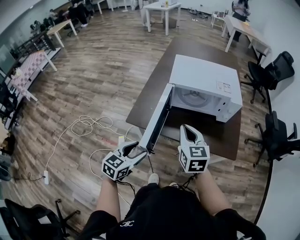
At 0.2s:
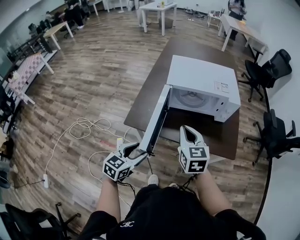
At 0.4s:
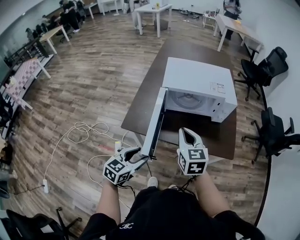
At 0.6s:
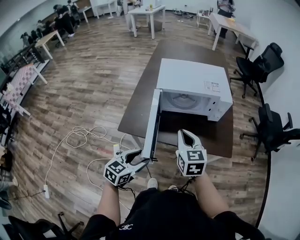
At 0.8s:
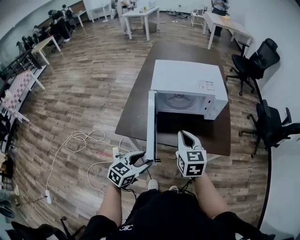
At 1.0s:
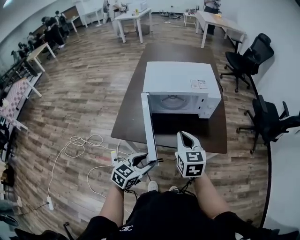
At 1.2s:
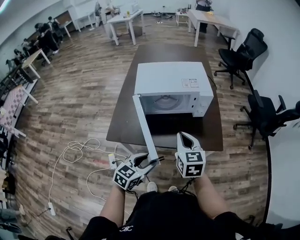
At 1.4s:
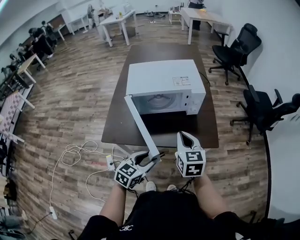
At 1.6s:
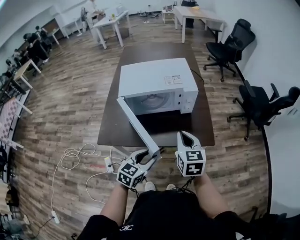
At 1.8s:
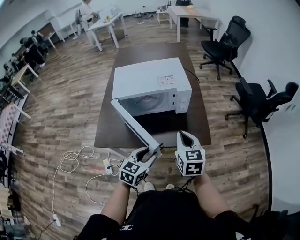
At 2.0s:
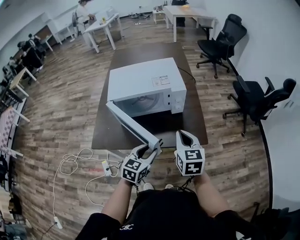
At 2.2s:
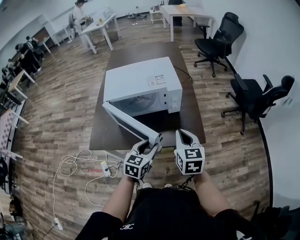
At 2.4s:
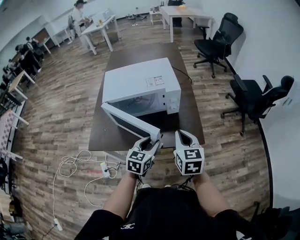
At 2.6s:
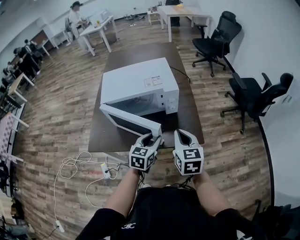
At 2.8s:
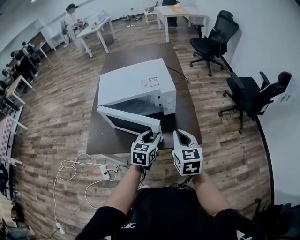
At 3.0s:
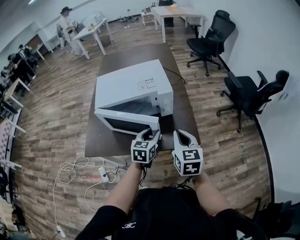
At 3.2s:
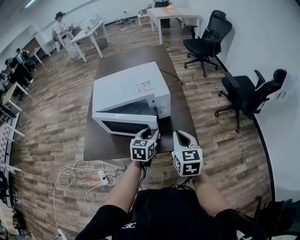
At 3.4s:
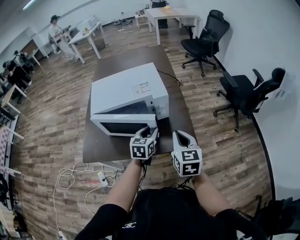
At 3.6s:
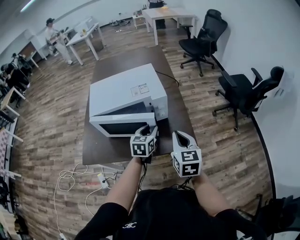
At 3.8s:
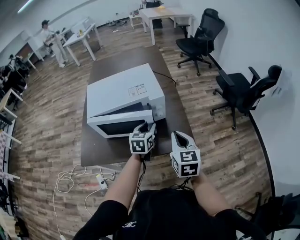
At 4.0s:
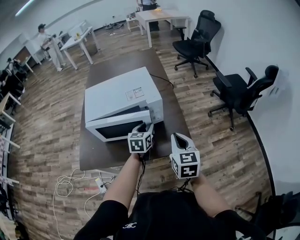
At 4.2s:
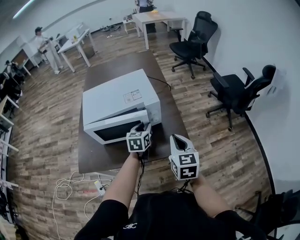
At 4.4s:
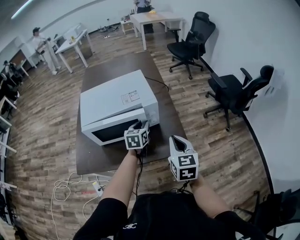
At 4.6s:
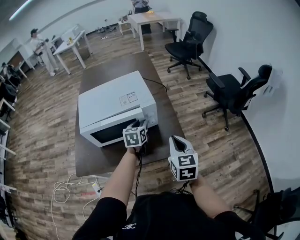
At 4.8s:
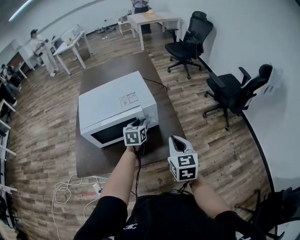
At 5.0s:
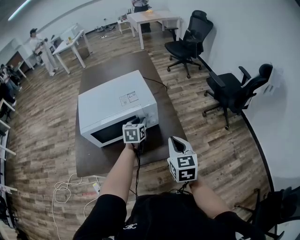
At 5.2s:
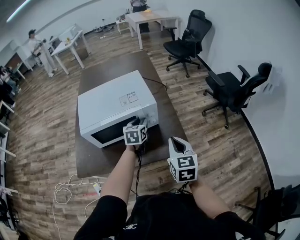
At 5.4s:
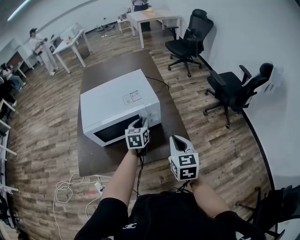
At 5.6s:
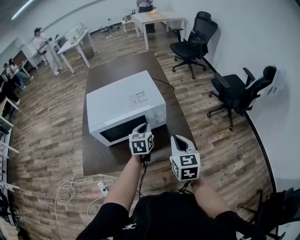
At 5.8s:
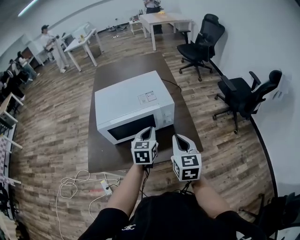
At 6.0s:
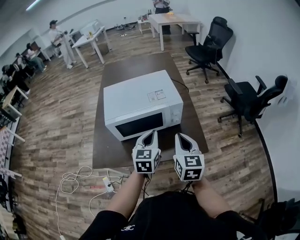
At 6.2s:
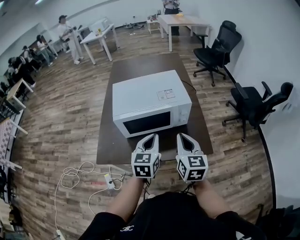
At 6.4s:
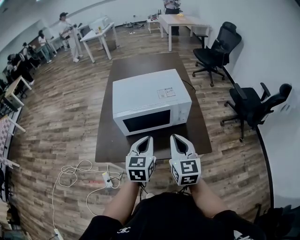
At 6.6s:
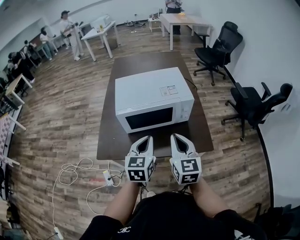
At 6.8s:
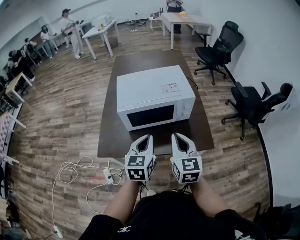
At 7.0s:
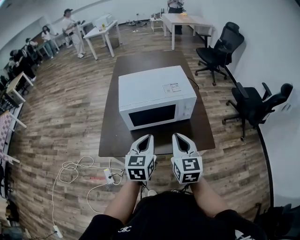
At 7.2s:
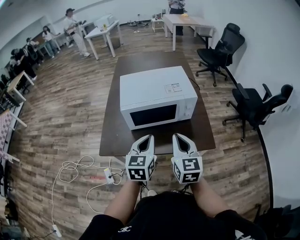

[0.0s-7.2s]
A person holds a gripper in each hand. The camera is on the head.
0.0s to 1.4s: Both grippers move to the right, some 15 cm.
1.4s to 2.8s: The right gripper moves to the right, roughly 10 cm, while the left gripper travels forward and to the right by about 20 cm.
2.8s to 4.4s: The left gripper is displaced forward by some 15 cm. The right gripper changes place by some 5 cm.
4.4s to 5.8s: The left gripper heads upward and backward, covering about 10 cm, and closes up. Meanwhile the right gripper travels to the left by roughly 5 cm.
5.8s to 7.2s: The left gripper is displaced backward and to the left by about 20 cm. The right gripper heads to the left and backward, covering roughly 15 cm.

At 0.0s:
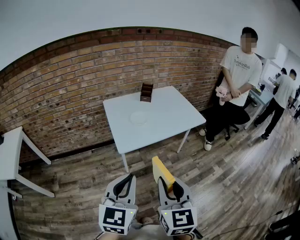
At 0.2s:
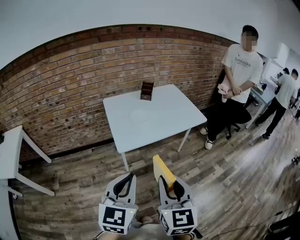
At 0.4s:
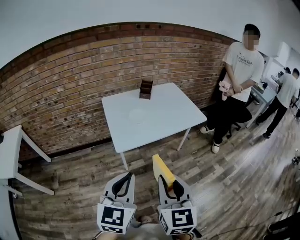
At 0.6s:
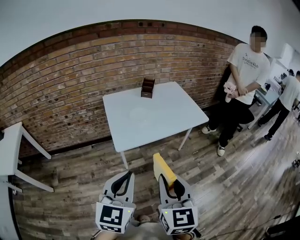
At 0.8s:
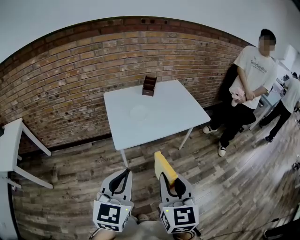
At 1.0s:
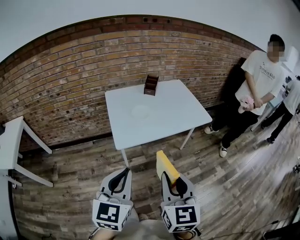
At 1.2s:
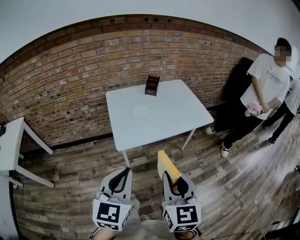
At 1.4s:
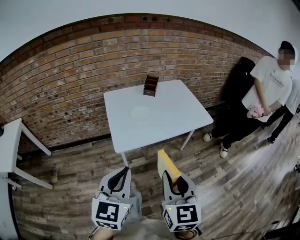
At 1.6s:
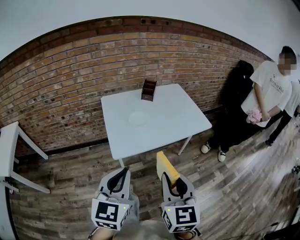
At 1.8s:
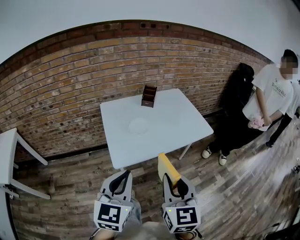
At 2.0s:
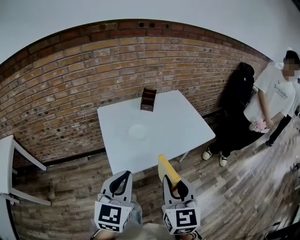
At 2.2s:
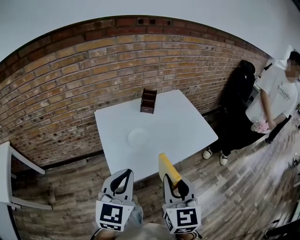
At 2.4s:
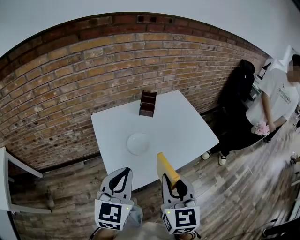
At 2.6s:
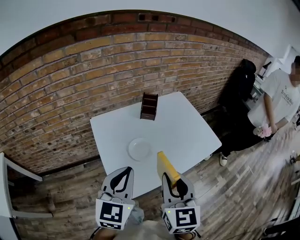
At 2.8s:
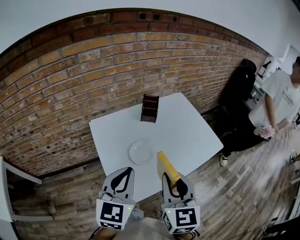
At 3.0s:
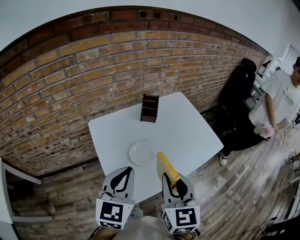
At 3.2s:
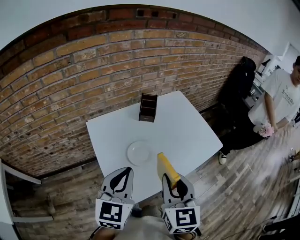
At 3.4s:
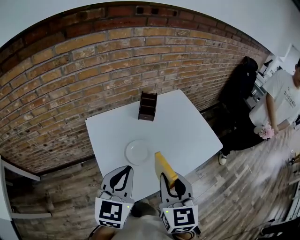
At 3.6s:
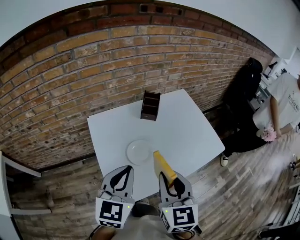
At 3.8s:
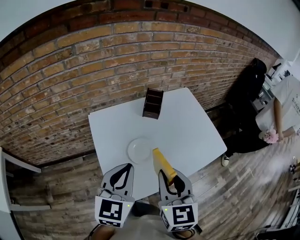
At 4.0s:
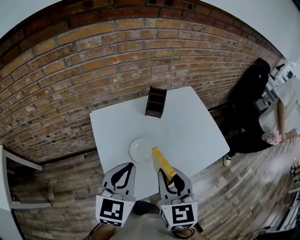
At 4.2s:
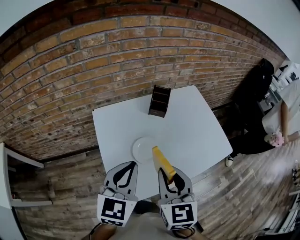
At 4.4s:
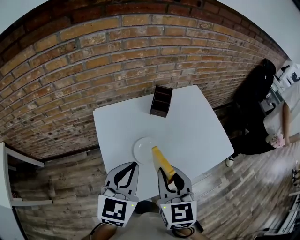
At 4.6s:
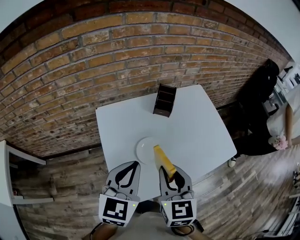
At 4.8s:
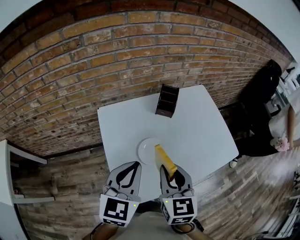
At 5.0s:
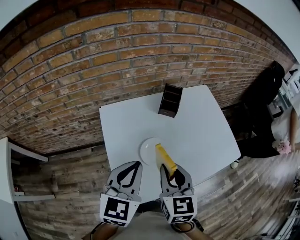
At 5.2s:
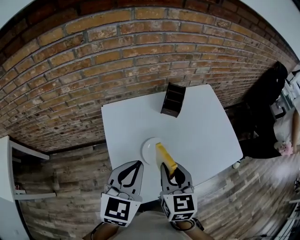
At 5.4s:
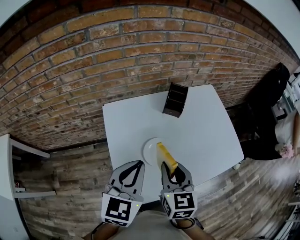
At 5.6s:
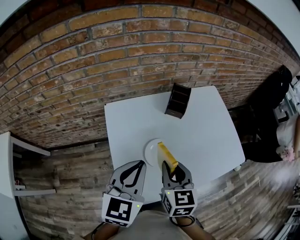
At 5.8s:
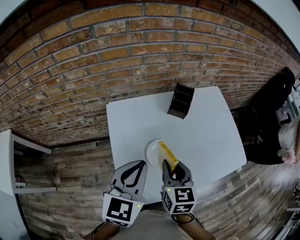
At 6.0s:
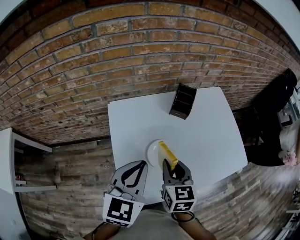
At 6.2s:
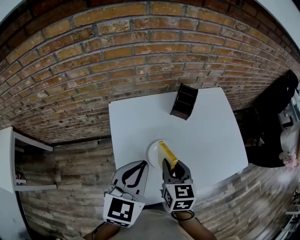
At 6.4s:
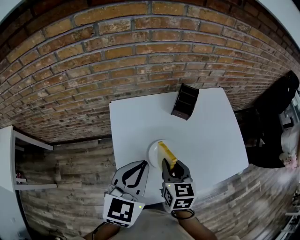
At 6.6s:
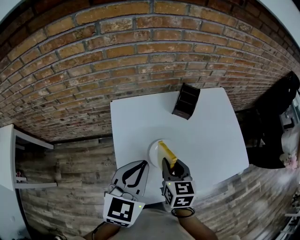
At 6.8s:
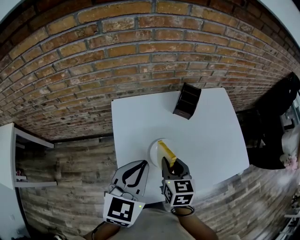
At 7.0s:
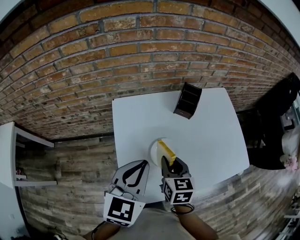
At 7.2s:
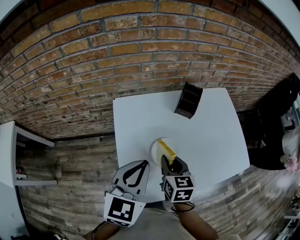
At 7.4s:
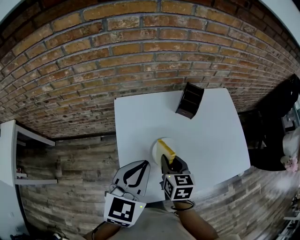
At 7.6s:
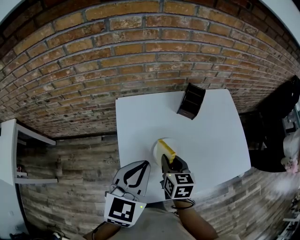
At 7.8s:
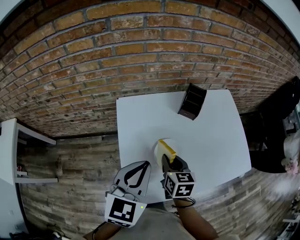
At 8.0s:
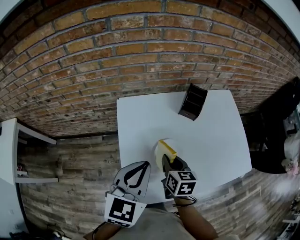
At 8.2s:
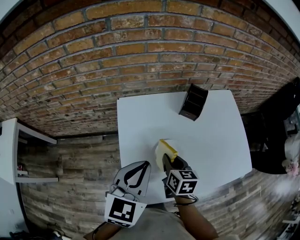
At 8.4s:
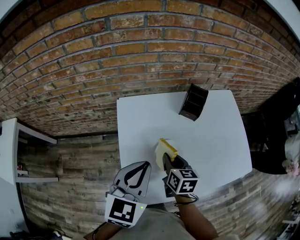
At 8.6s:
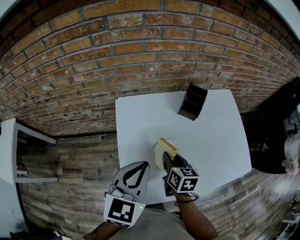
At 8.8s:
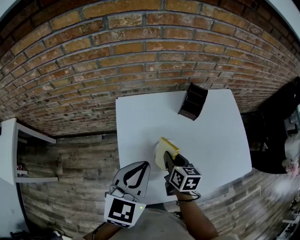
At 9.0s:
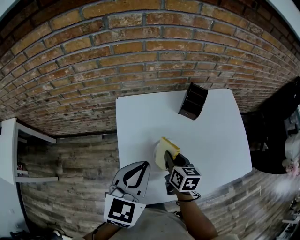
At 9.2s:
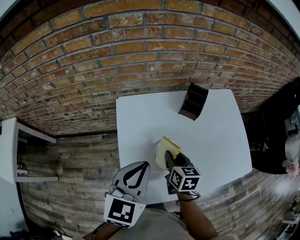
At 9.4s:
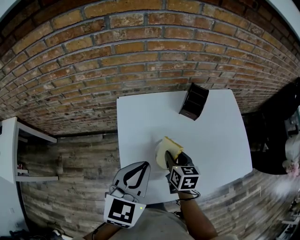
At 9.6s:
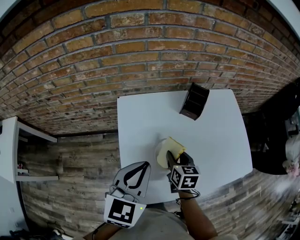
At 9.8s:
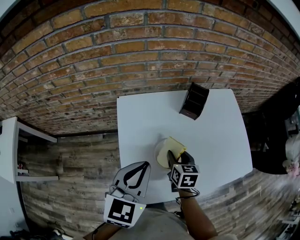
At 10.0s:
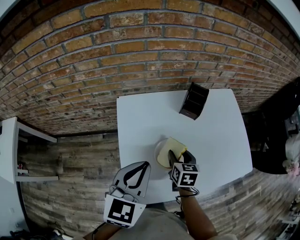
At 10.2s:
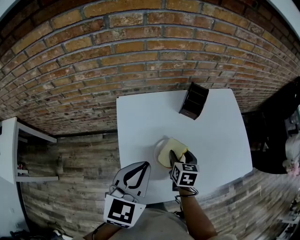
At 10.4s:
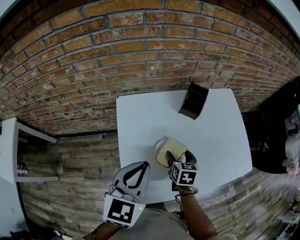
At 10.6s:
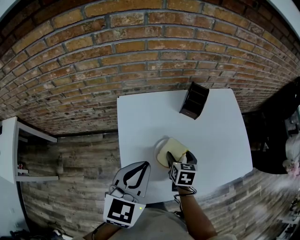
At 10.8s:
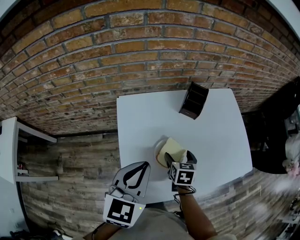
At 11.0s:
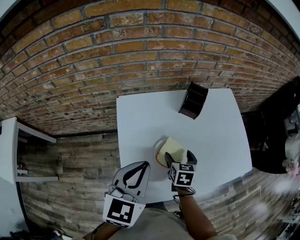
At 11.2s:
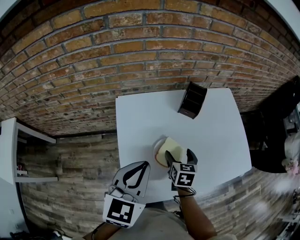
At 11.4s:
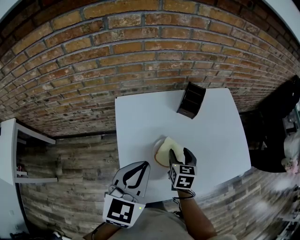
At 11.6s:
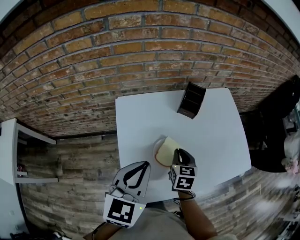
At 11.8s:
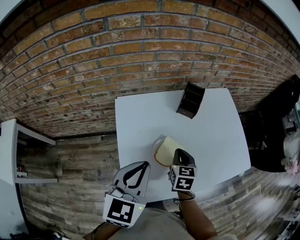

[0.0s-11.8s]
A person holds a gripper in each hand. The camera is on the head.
0.0s to 1.4s: The two grippers go about 10 cm forward.
1.4s to 3.0s: Both grippers travel together forward, approximately 35 cm.
3.0s to 4.4s: The right gripper travels forward by about 5 cm.
4.4s to 6.0s: The right gripper heads downward and forward, covering approximately 15 cm. Meanwhile the left gripper changes place by roughly 5 cm.
6.0s to 7.4s: The right gripper moves some 5 cm.
7.4s to 8.8s: The grippers make only small movements.
8.8s to 10.4s: The right gripper changes place by roughly 5 cm, and opens.
10.4s to 11.8s: The right gripper closes.

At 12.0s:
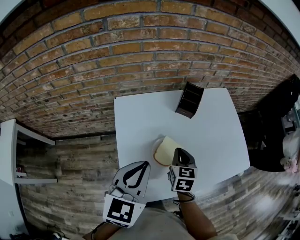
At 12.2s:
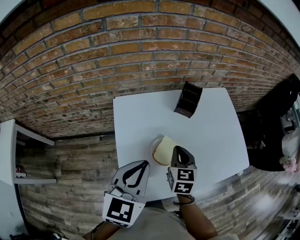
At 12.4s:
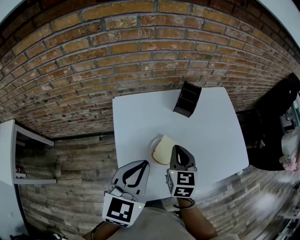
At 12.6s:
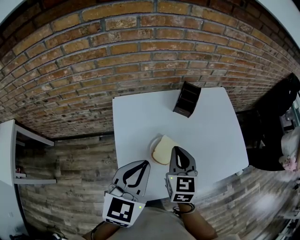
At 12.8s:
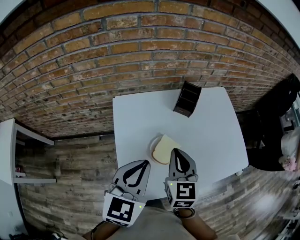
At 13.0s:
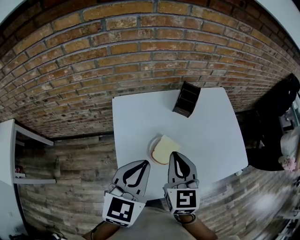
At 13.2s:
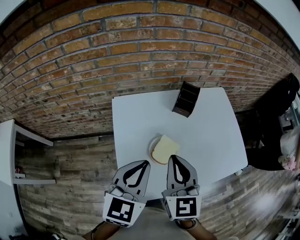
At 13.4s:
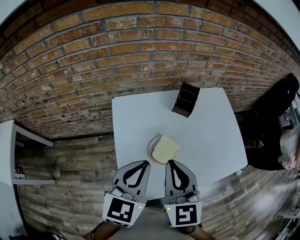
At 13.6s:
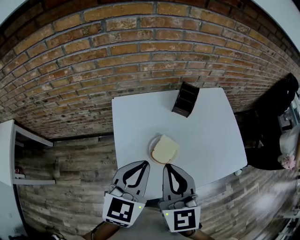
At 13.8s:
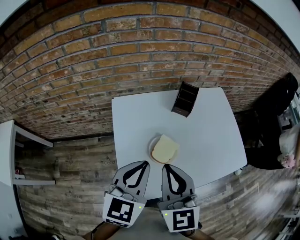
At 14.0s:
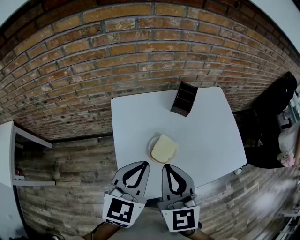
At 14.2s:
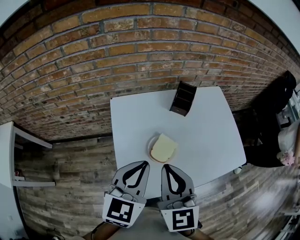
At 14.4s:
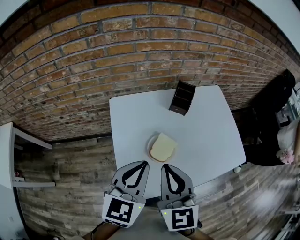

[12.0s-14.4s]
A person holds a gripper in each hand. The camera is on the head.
12.0s to 13.2s: The right gripper is displaced upward and backward by about 15 cm, and changes its angle by approximately 30 degrees.
13.2s to 14.4s: The right gripper ends up some 5 cm from where it was.

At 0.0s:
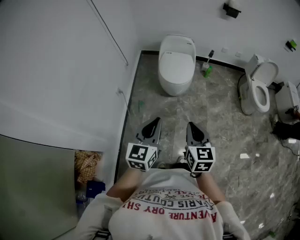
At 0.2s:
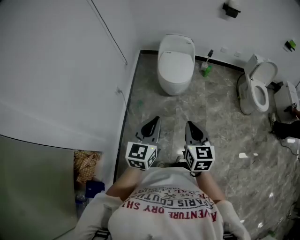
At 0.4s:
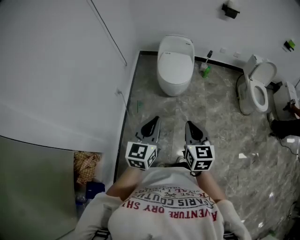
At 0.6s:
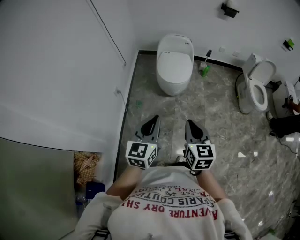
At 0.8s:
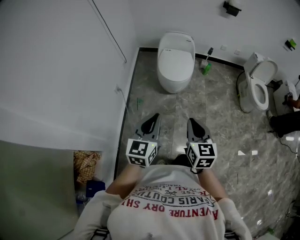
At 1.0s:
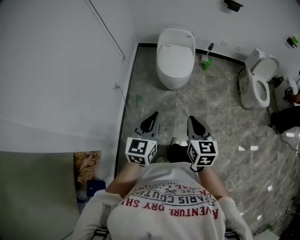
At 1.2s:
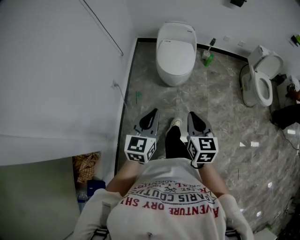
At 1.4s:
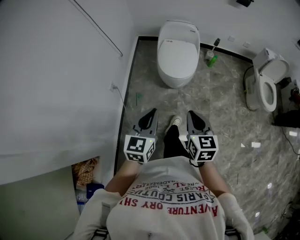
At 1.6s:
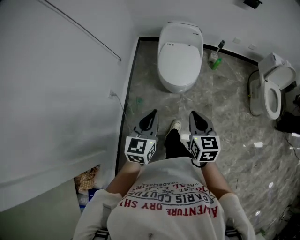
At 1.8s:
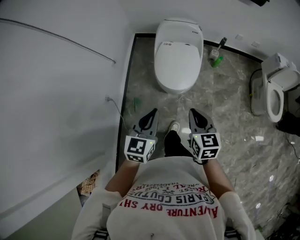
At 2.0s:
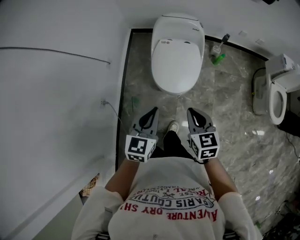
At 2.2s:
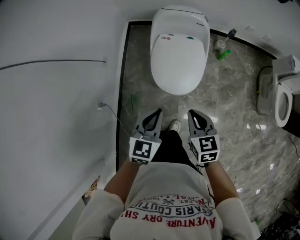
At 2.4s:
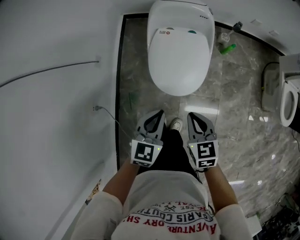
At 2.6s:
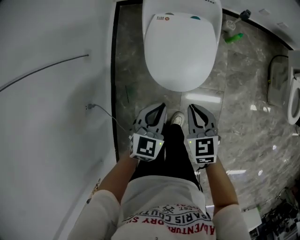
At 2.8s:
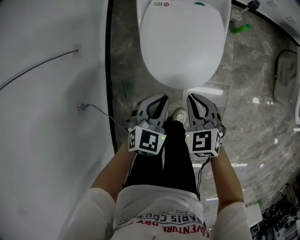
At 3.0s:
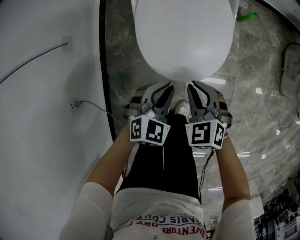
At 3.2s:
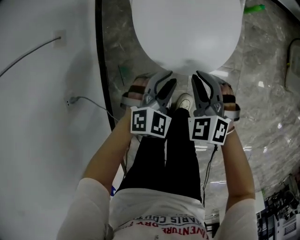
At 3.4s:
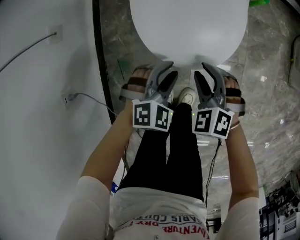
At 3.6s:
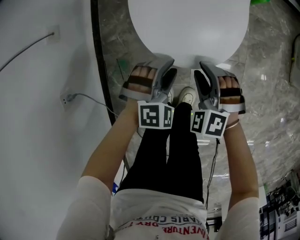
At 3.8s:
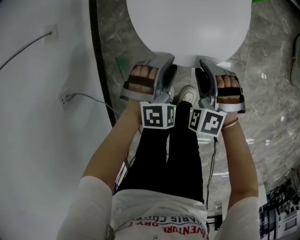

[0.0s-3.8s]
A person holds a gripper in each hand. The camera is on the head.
0.0s to 1.2s: The grippers both shift forward by some 10 cm.
1.2s to 2.6s: The pair of grippers is taken forward, roughly 50 cm. Both grippers travel together downward, approximately 35 cm. The right gripper turns by about 20 degrees, while the left gripper swivels roughly 30 degrees.
2.6s to 3.8s: Both grippers travel together downward, about 25 cm. The left gripper rolls clockwise, seen from behind, by approximately 50 degrees, and opens; the right gripper twists approximately 60 degrees counterclockwise, seen from behind, and opens its fingers.
